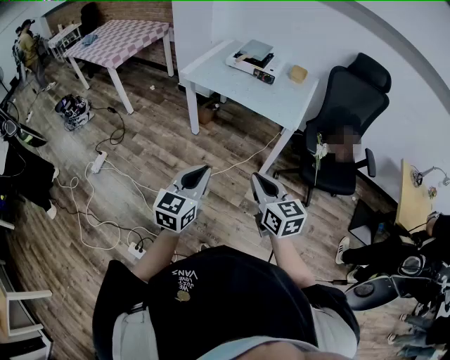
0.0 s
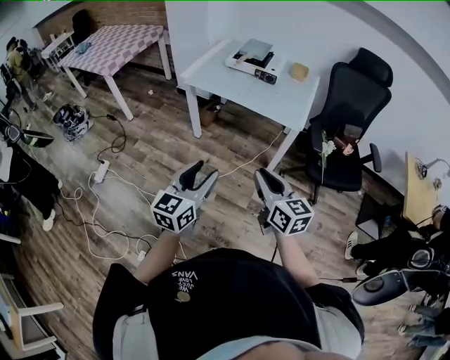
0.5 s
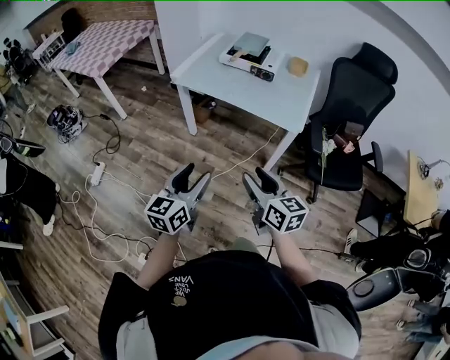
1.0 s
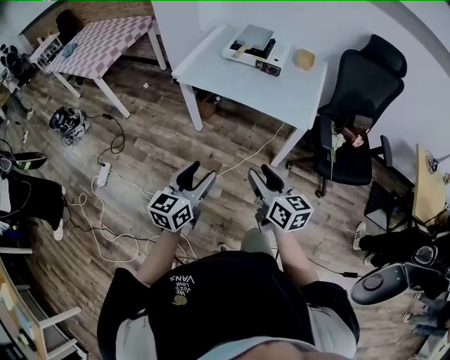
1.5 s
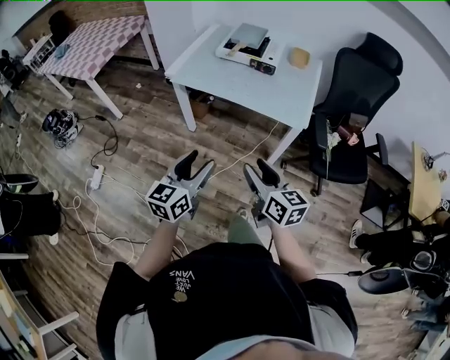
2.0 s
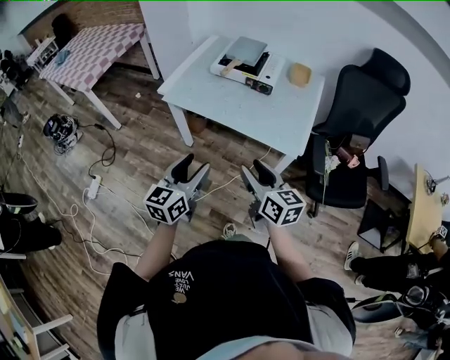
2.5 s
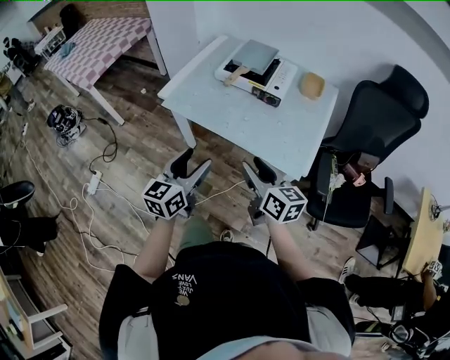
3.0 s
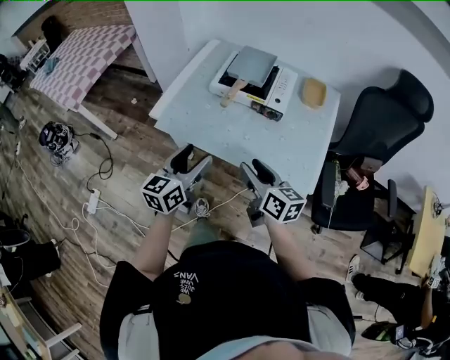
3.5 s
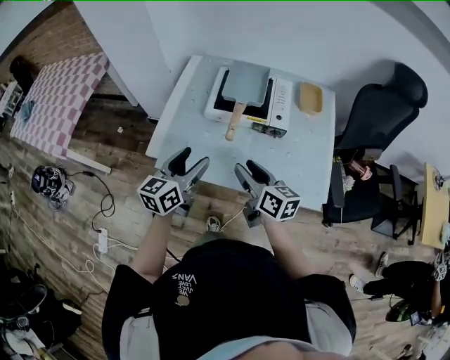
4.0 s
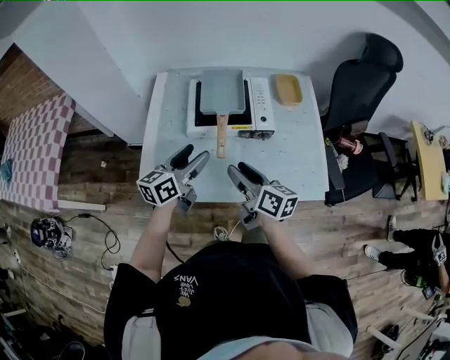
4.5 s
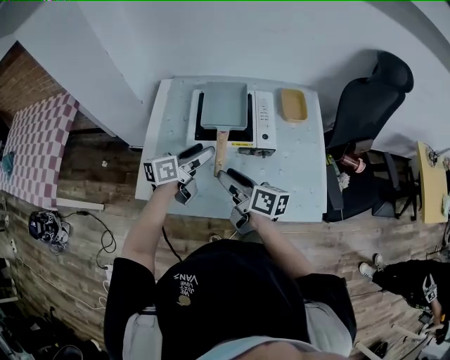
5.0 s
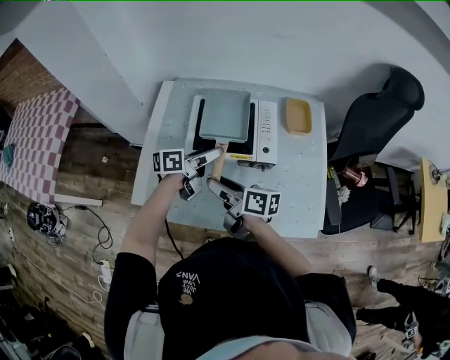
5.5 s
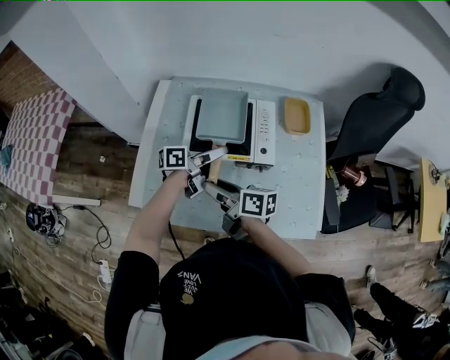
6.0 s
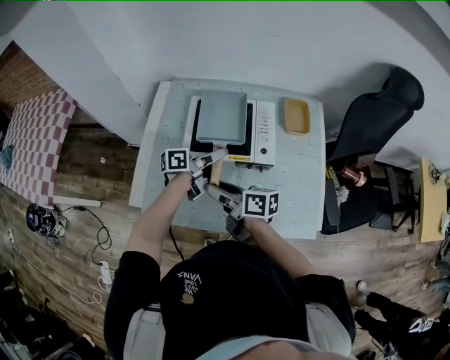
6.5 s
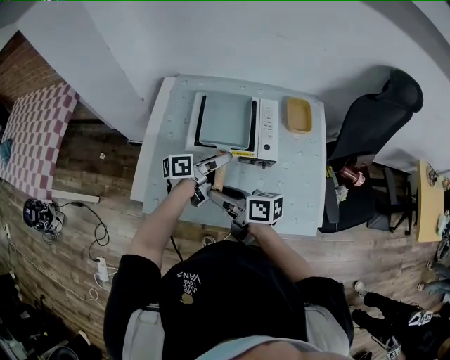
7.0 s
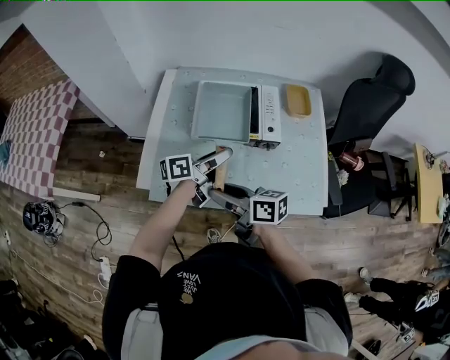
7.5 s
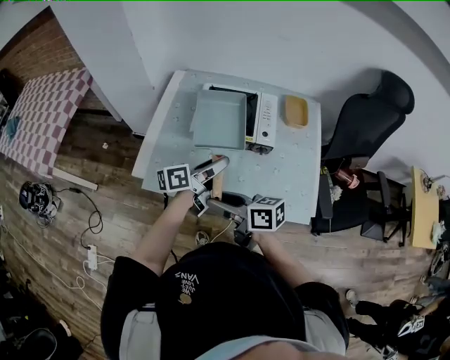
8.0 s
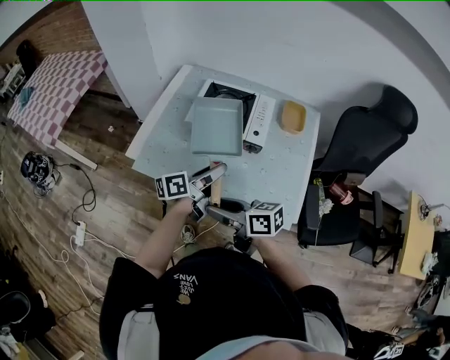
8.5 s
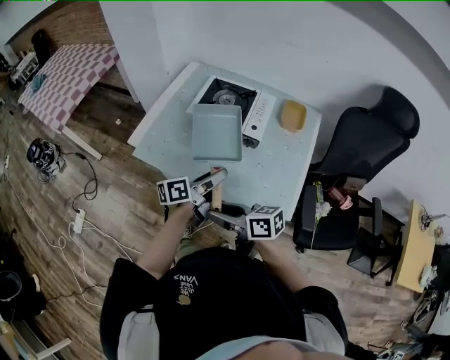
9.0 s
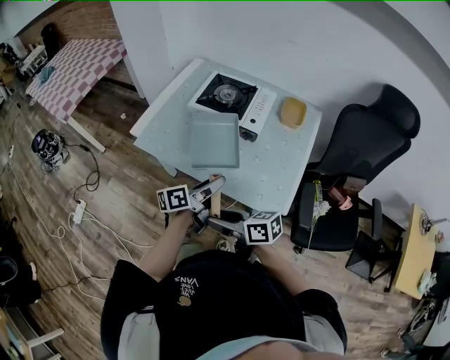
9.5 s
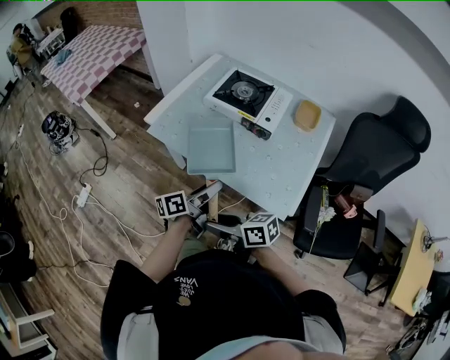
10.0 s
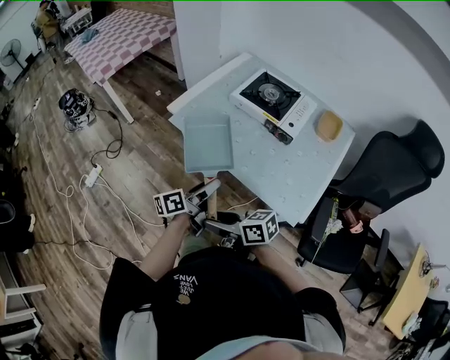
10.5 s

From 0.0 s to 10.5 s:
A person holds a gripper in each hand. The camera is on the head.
From 0.0 s to 2.0 s: The grippers both shift forward by some 15 cm. The left gripper opens up, while the right gripper opens up.
From 2.0 s to 4.0 s: The two grippers travel together, forward, about 40 cm.
From 4.0 s to 6.5 s: The left gripper shifts approximately 25 cm forward, to the right and downward, and swivels approximately 50 degrees. Meanwhile the right gripper moves forward and to the left, about 10 cm, and swivels roughly 30 degrees.
From 6.5 s to 8.5 s: The grippers both shift backward by approximately 20 cm. The right gripper swivels approximately 30 degrees. The left gripper rotates about 20 degrees.
From 8.5 s to 10.5 s: The left gripper changes place by some 20 cm, and turns by about 30 degrees. The right gripper moves about 20 cm, and swivels approximately 30 degrees.

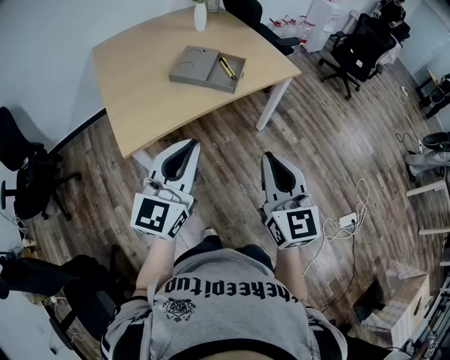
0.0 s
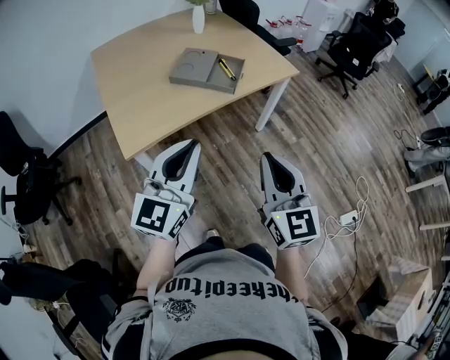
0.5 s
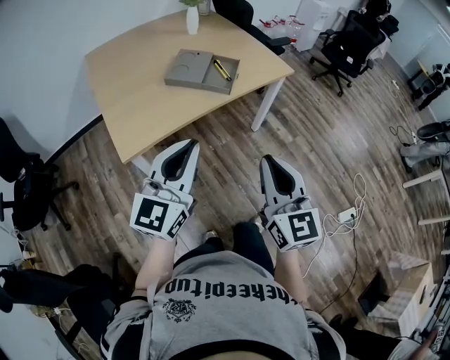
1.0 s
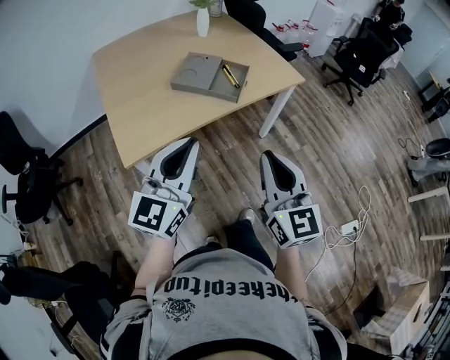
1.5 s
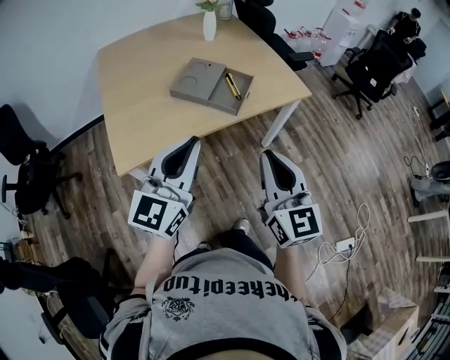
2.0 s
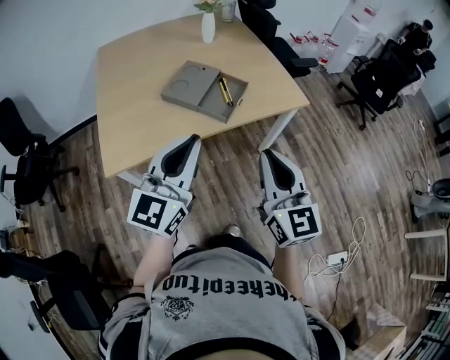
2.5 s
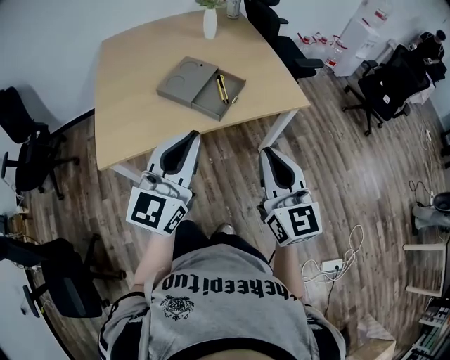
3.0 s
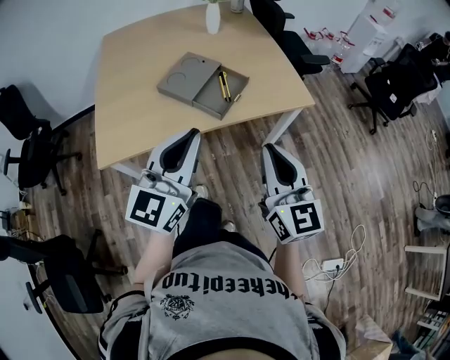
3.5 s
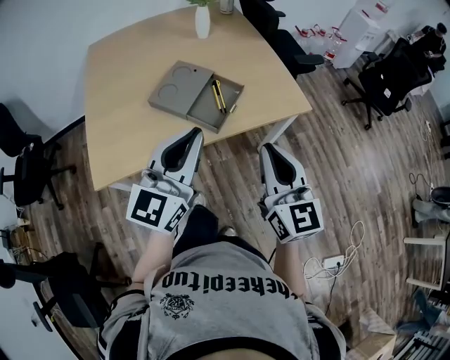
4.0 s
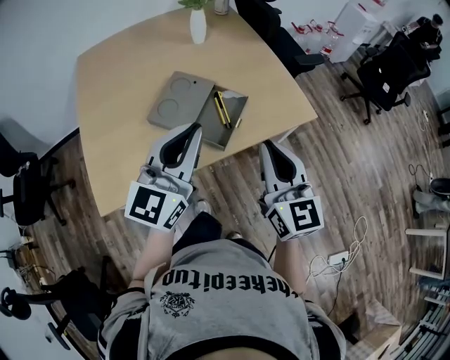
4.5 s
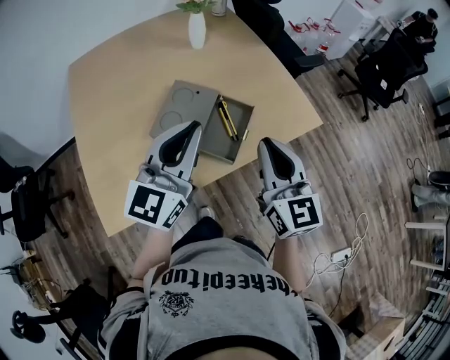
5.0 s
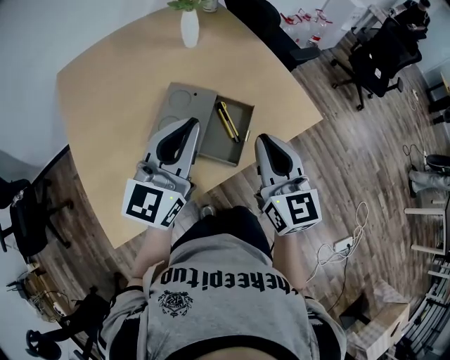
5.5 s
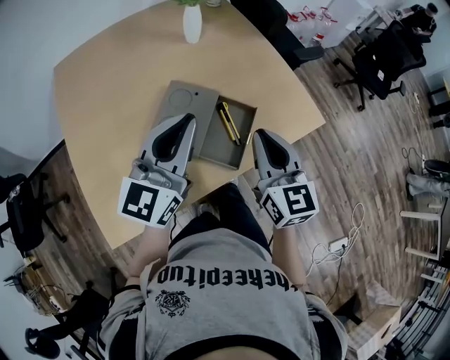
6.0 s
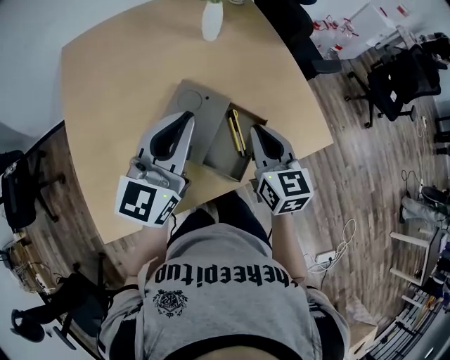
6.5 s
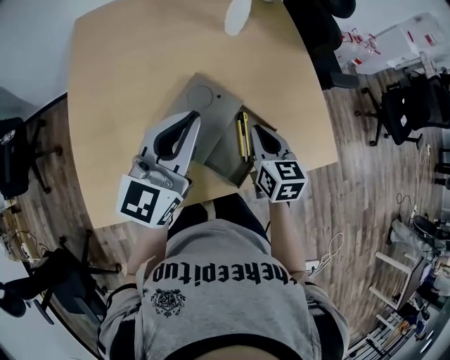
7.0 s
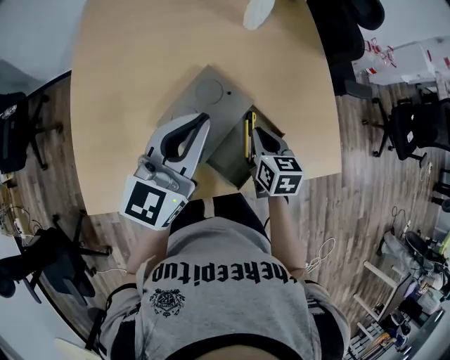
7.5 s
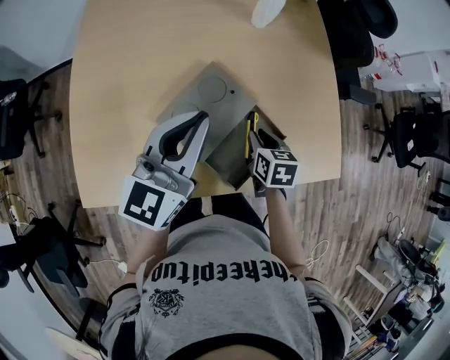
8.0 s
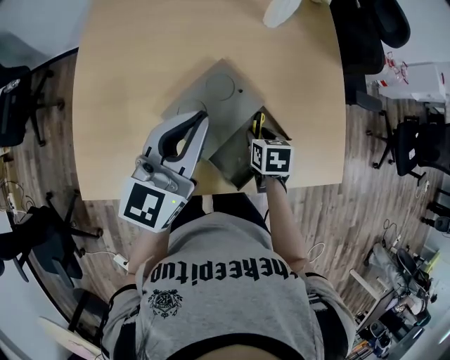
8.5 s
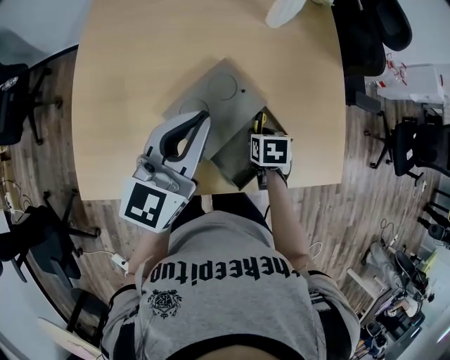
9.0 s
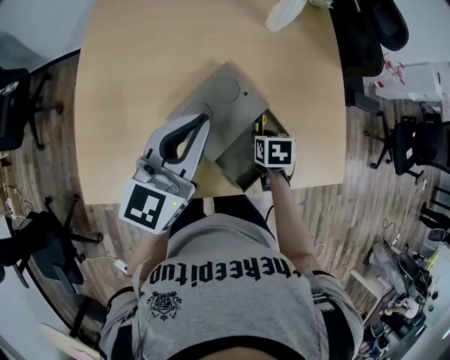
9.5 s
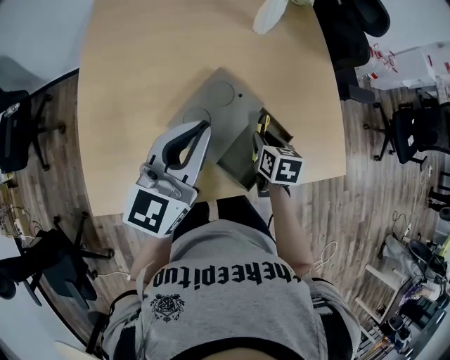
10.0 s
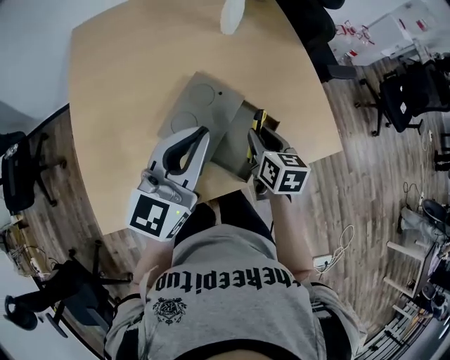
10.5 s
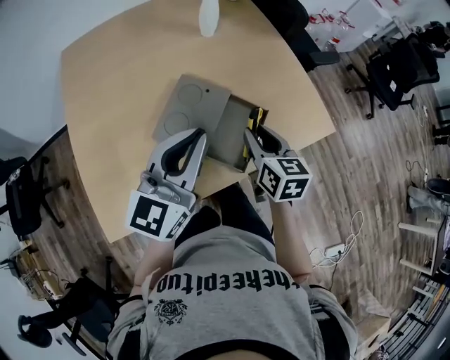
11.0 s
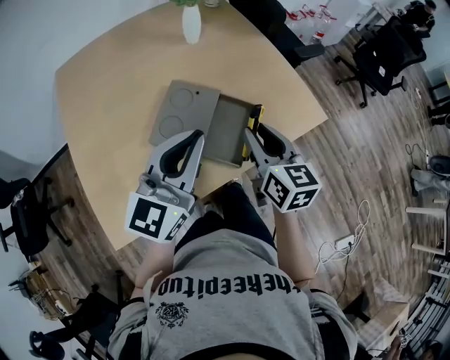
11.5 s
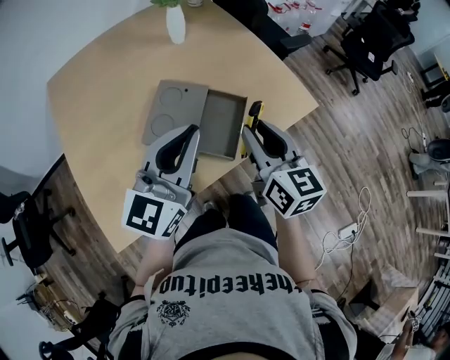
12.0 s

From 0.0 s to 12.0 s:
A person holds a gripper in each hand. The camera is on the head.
From 0.0 s to 2.0 s: Both grippers move forward, approximately 10 cm.
From 2.0 s to 4.0 s: Both grippers travel together forward and to the right, approximately 15 cm.
From 4.0 s to 6.0 s: The two grippers go approximately 25 cm forward and to the left.
From 6.0 s to 8.0 s: The left gripper heads forward and downward, covering some 10 cm, and swivels about 20 degrees. Meanwhile the right gripper heads downward and forward, covering about 25 cm, points its fingers about 40 degrees further downward, and opens its fingers.
From 10.0 s to 12.0 s: The left gripper shifts some 15 cm backward, to the right and upward, and changes its angle by roughly 20 degrees. The right gripper travels upward and backward by roughly 25 cm, and tips its fingers upward by roughly 40 degrees.

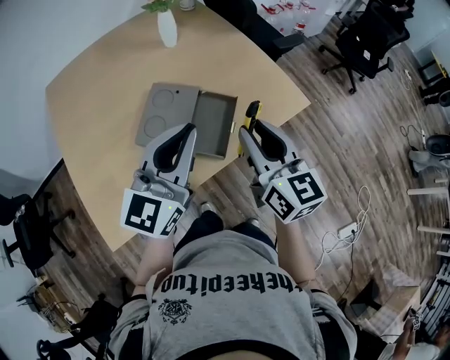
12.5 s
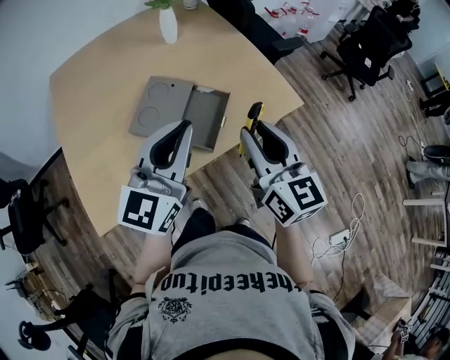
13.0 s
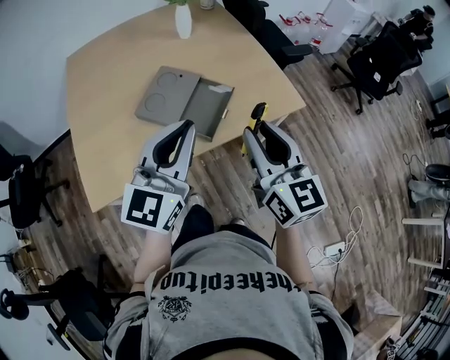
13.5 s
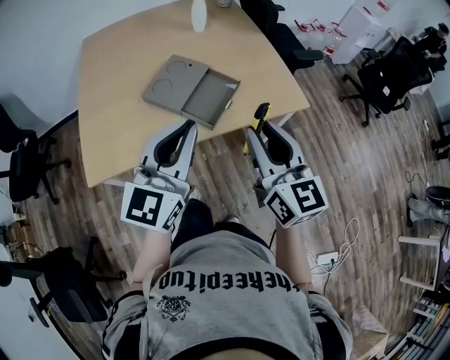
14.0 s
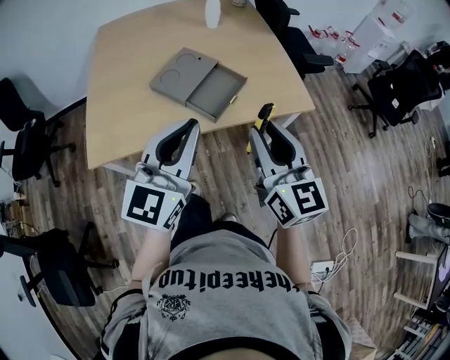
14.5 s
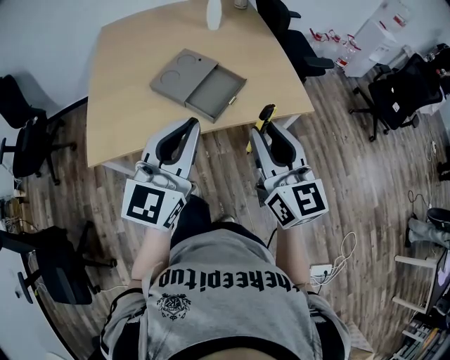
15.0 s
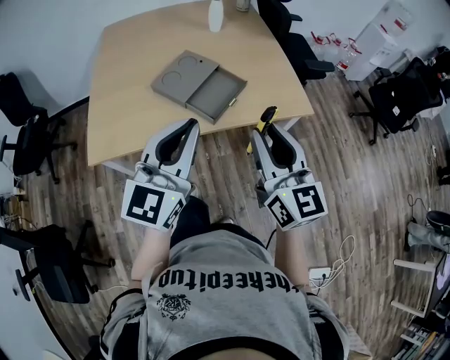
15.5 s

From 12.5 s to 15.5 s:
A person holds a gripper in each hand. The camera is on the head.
From 12.5 s to 14.0 s: Both grippers travel together backward and to the right, about 15 cm.
From 14.0 s to 15.5 s: The grippers make only small movements.

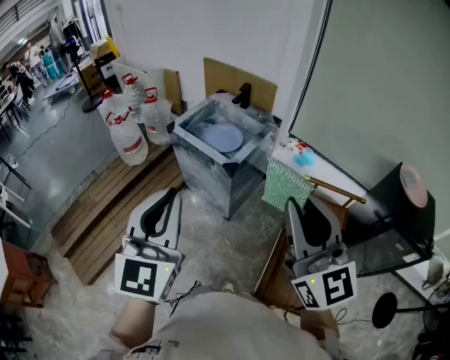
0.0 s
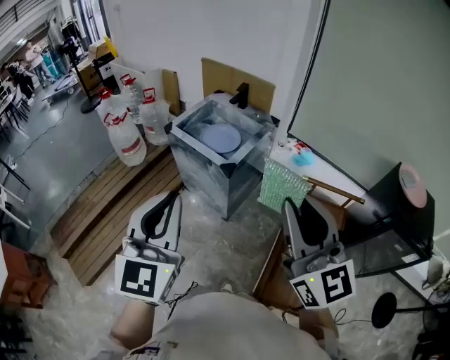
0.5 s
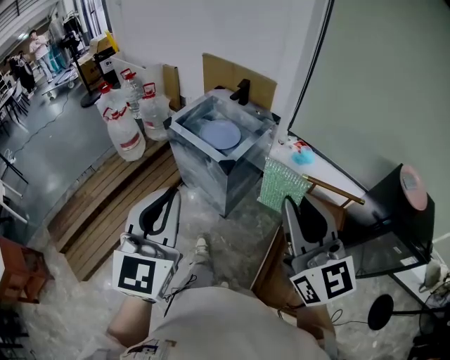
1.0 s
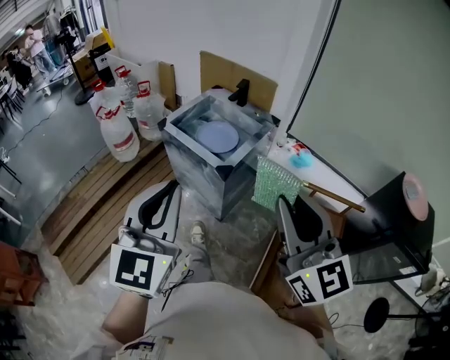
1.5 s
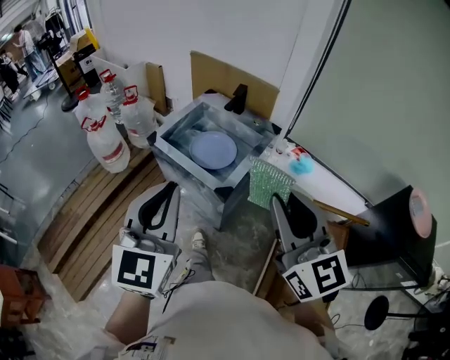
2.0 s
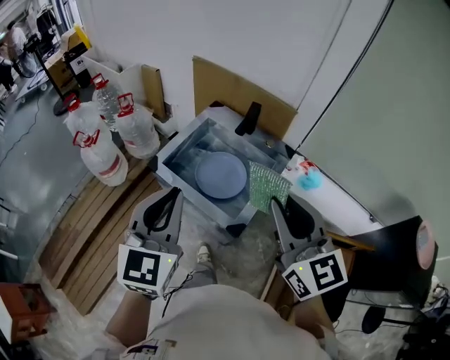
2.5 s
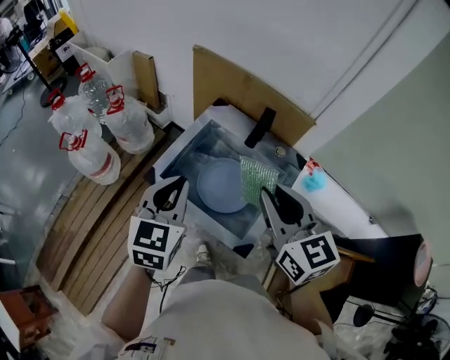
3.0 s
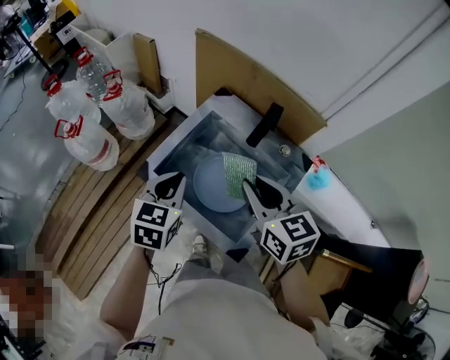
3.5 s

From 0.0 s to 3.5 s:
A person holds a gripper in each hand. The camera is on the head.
From 0.0 s to 2.0 s: The grippers both shift forward by roughly 20 cm.
From 2.0 s to 3.5 s: The pair of grippers is taken forward, about 40 cm. The grippers both shift downward by about 20 cm. The right gripper changes its angle by about 30 degrees; the left gripper tilts its fingers some 30 degrees downward.
